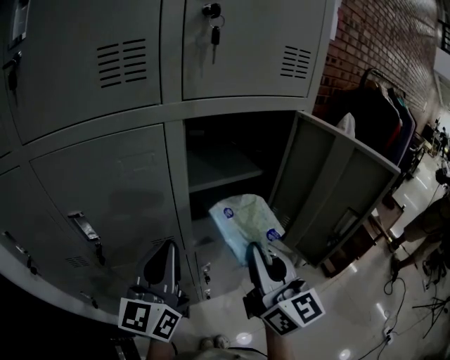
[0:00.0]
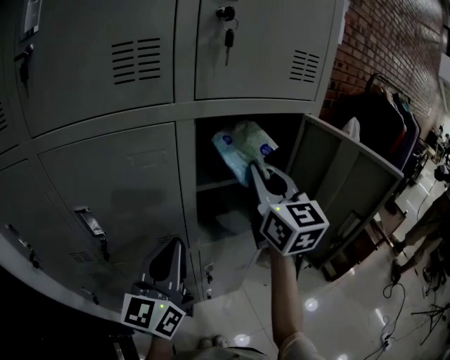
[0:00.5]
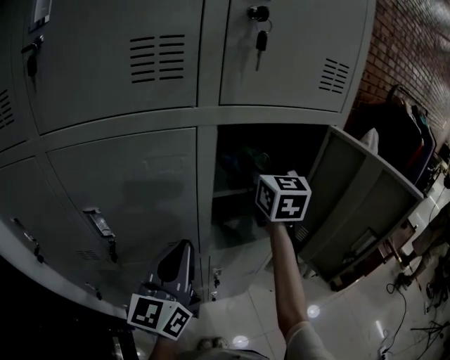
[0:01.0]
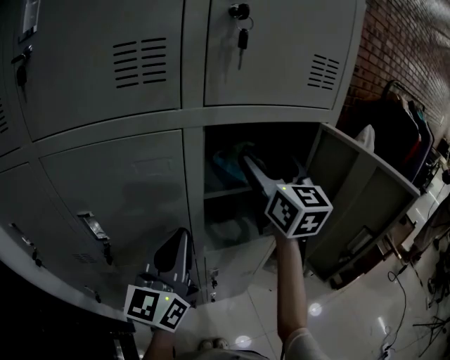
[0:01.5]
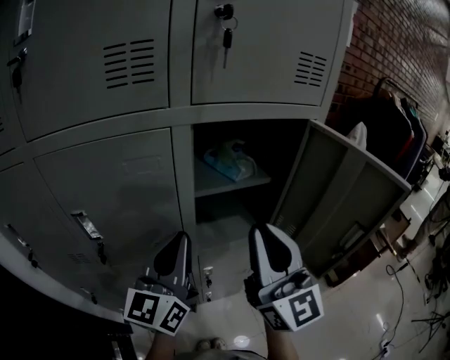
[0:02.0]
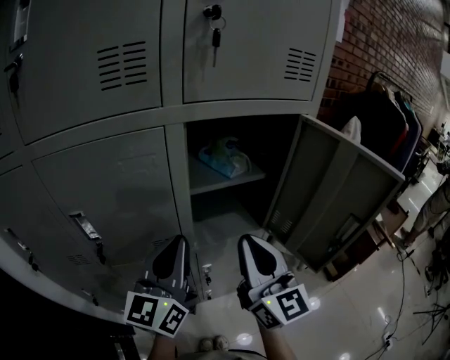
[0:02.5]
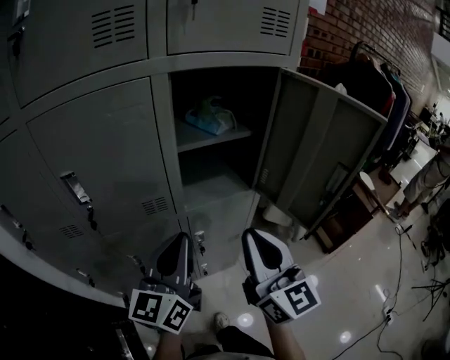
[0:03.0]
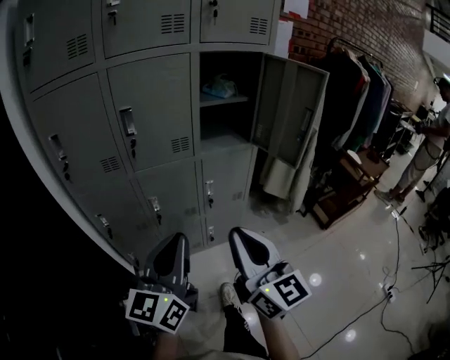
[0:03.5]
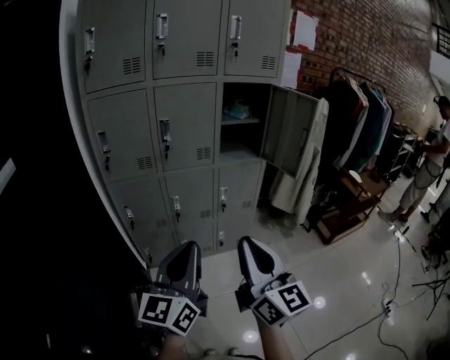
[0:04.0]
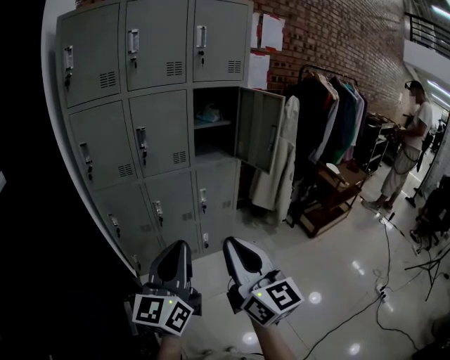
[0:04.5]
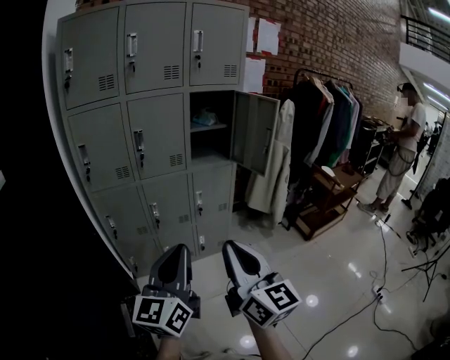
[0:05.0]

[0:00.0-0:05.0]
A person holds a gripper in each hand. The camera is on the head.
0:00.0 to 0:02.5: The right gripper goes forward and returns, about 25 cm each way, and opens and closes again.
0:02.5 to 0:05.0: The pair of grippers is taken backward, approximately 60 cm.

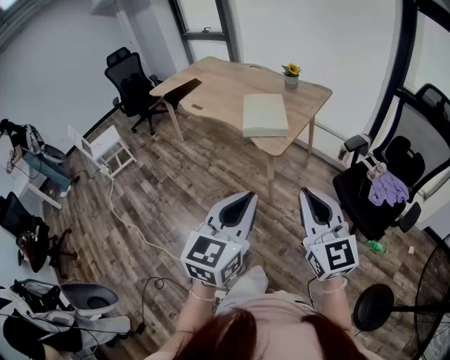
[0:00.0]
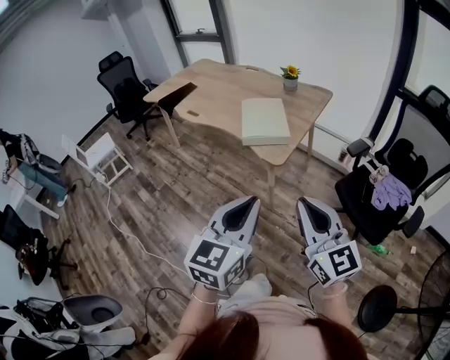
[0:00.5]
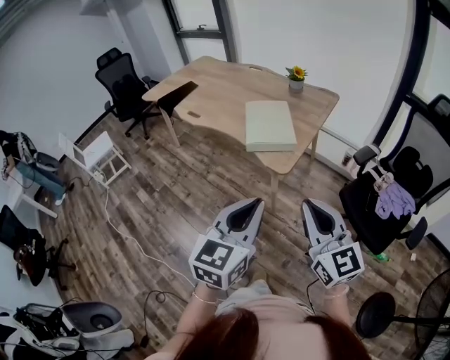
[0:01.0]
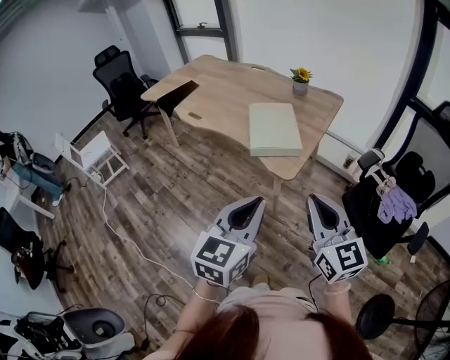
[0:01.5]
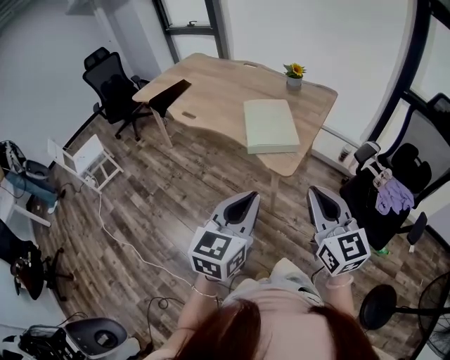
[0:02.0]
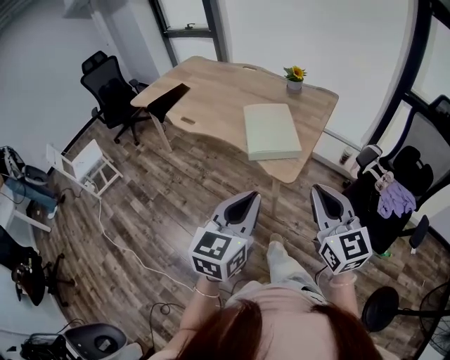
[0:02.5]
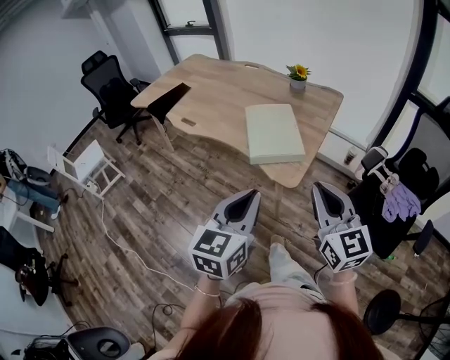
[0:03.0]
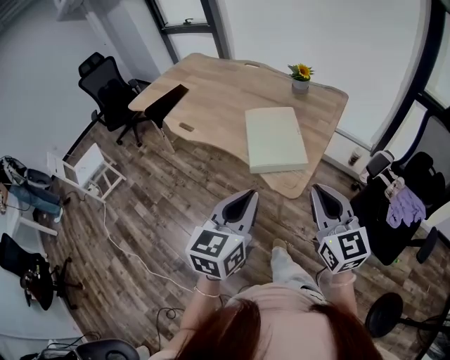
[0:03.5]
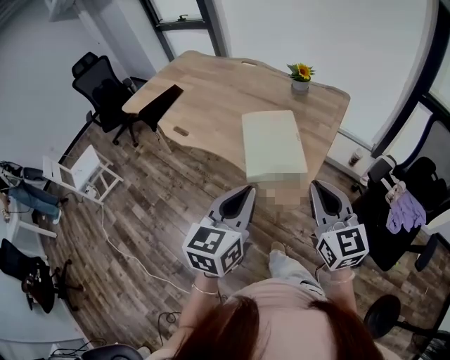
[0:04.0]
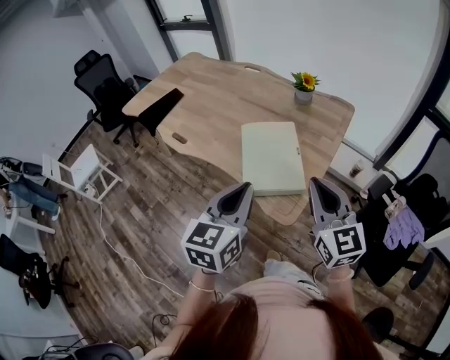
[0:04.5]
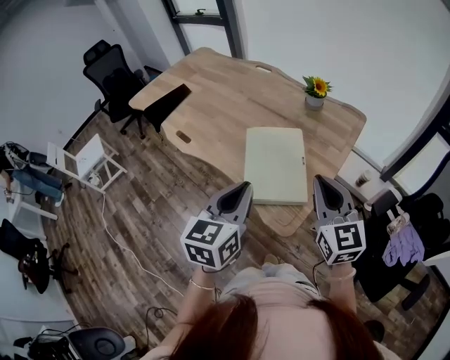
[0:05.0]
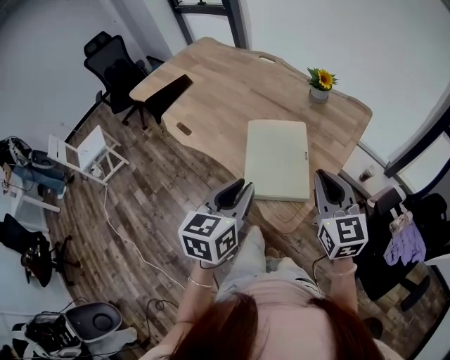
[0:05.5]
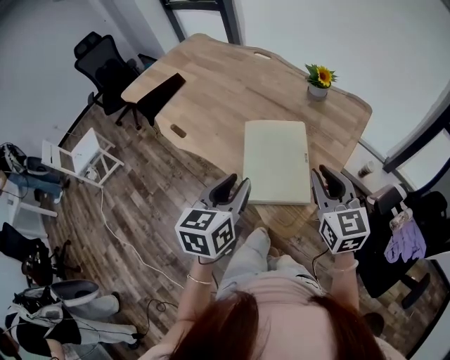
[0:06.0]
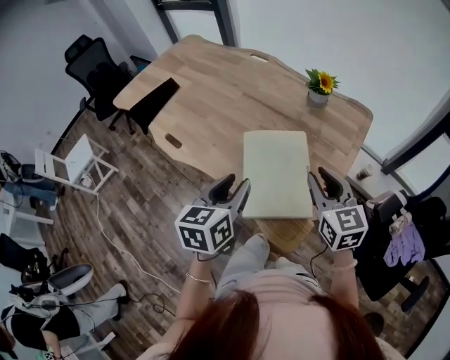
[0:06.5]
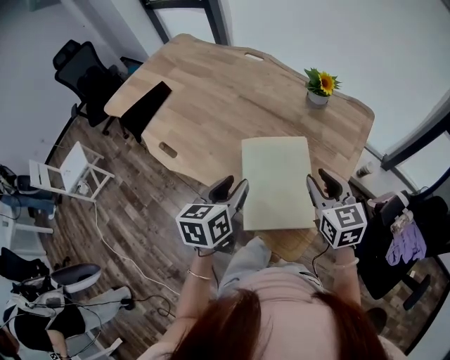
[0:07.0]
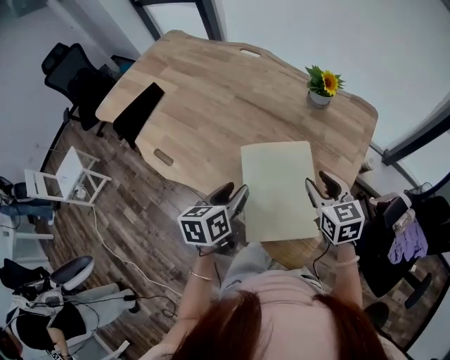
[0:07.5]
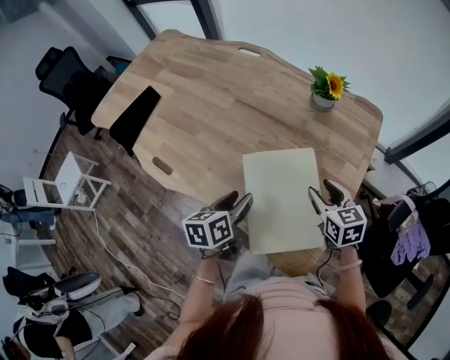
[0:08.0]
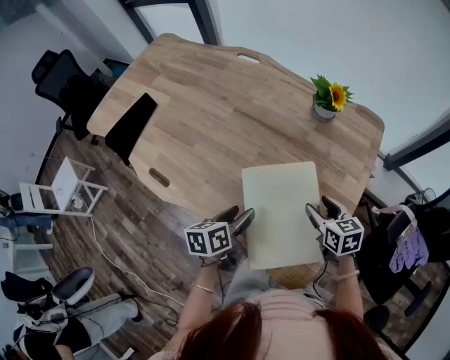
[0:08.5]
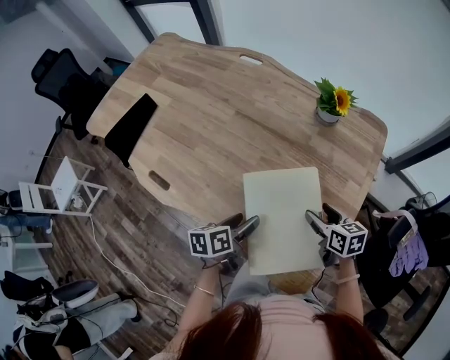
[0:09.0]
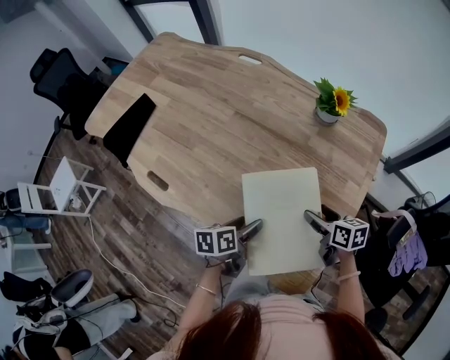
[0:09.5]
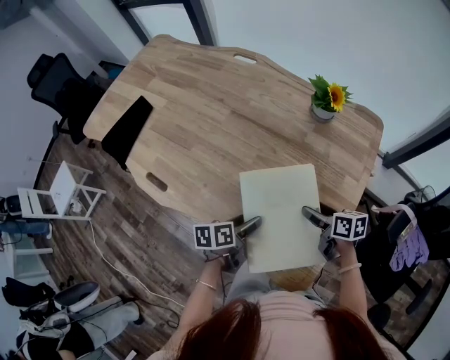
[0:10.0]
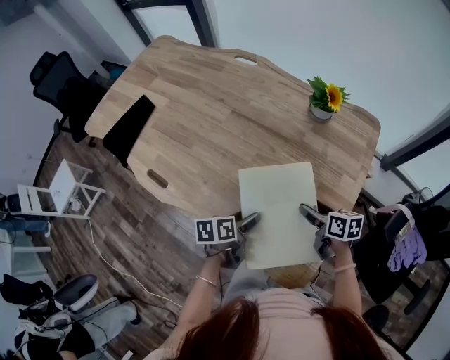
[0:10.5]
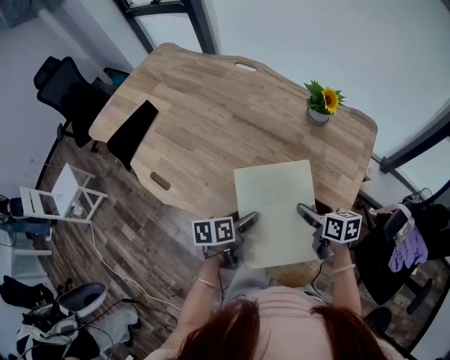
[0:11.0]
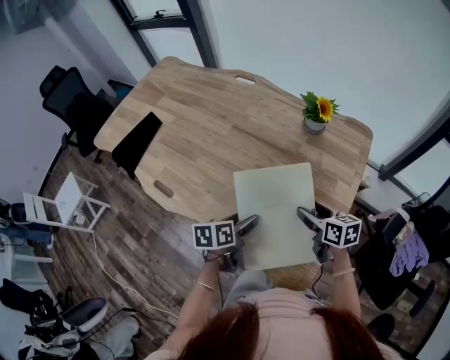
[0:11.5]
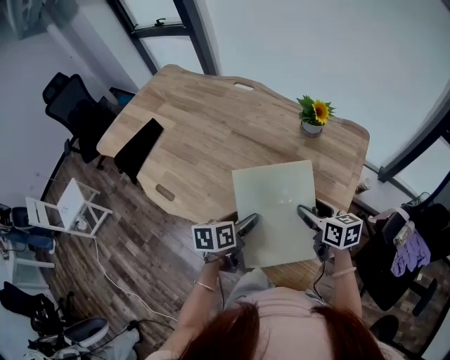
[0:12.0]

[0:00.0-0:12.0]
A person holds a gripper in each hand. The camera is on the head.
0:00.0 to 0:02.0: The left gripper travels forward and to the left by some 20 cm. Meanwhile the right gripper shifts some 15 cm forward.
0:02.0 to 0:04.0: Both grippers move forward, about 20 cm.
0:04.0 to 0:06.0: Both grippers move forward, roughly 20 cm. The left gripper opens its fingers.
0:06.0 to 0:08.0: Both grippers move forward and downward, approximately 25 cm. The right gripper swivels roughly 30 degrees, and opens. Meanwhile the left gripper changes its angle by about 30 degrees.
0:08.0 to 0:10.0: The grippers both shift downward by approximately 10 cm. The right gripper swivels some 40 degrees, while the left gripper changes its angle by about 20 degrees, and opens its fingers.
0:10.0 to 0:12.0: Both grippers travel together upward, roughly 10 cm. The right gripper changes its angle by roughly 20 degrees.

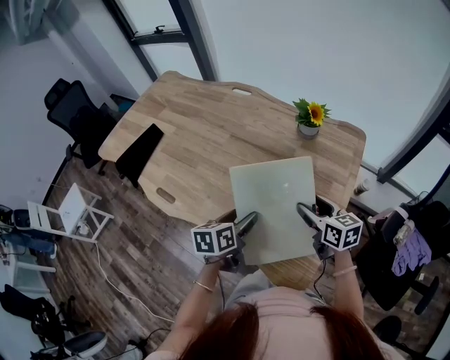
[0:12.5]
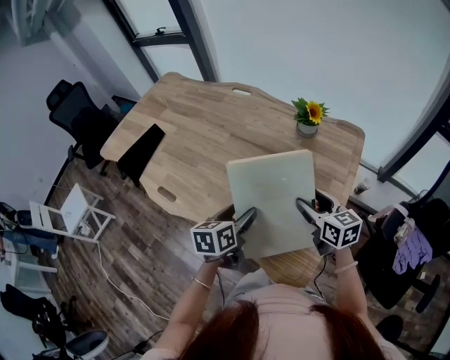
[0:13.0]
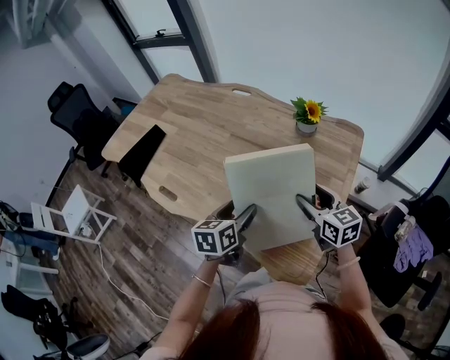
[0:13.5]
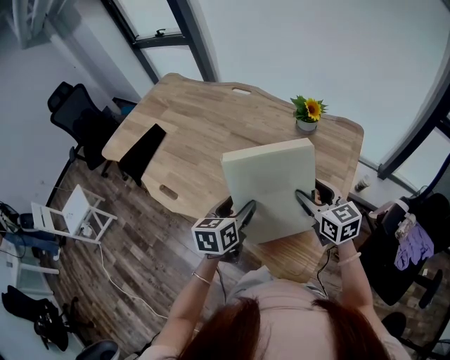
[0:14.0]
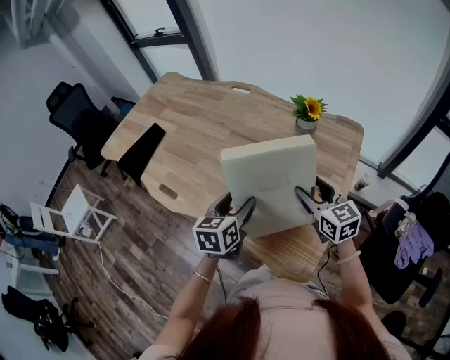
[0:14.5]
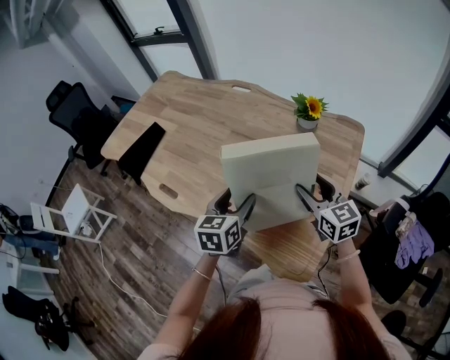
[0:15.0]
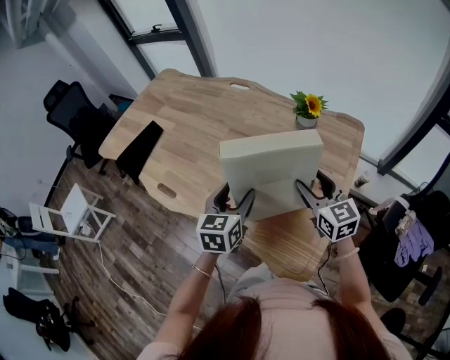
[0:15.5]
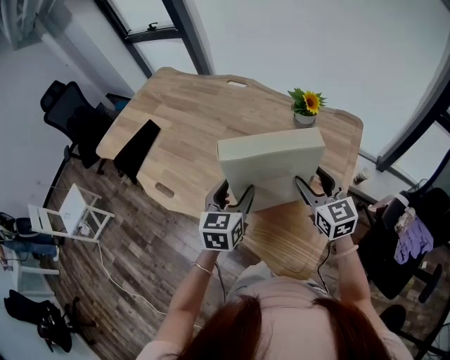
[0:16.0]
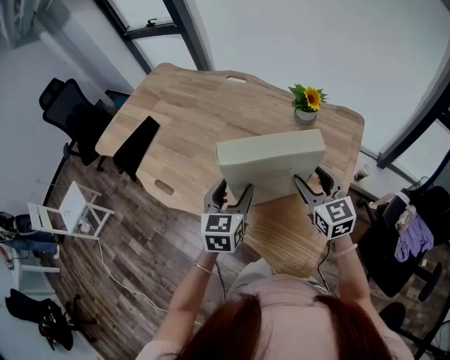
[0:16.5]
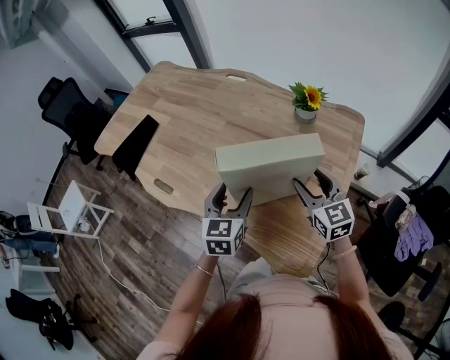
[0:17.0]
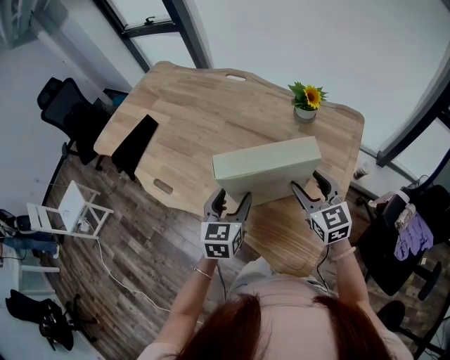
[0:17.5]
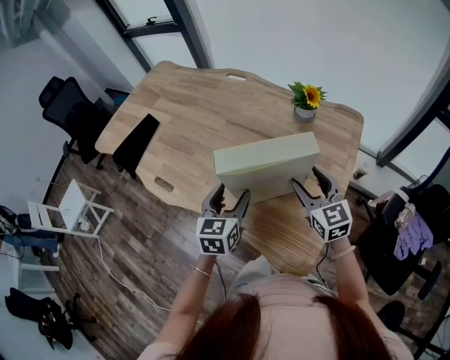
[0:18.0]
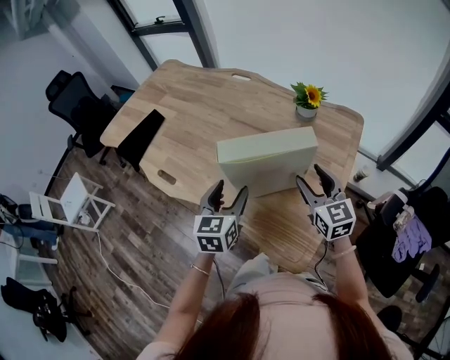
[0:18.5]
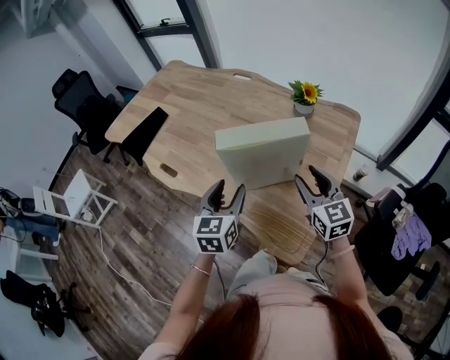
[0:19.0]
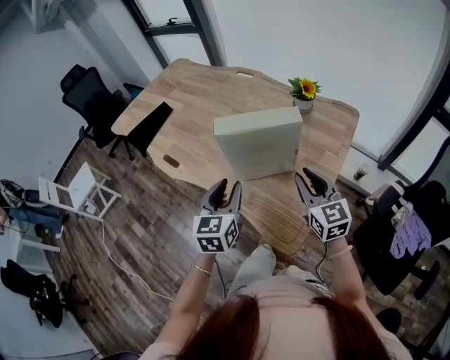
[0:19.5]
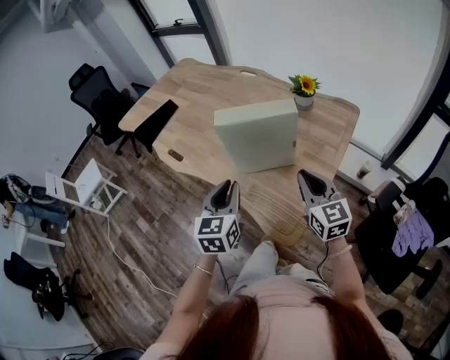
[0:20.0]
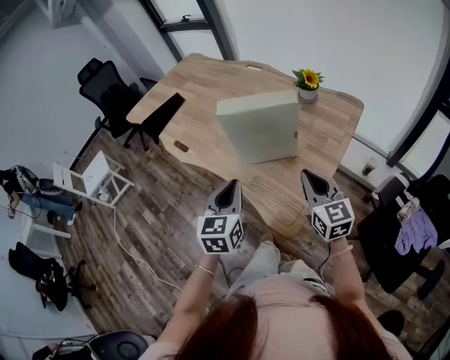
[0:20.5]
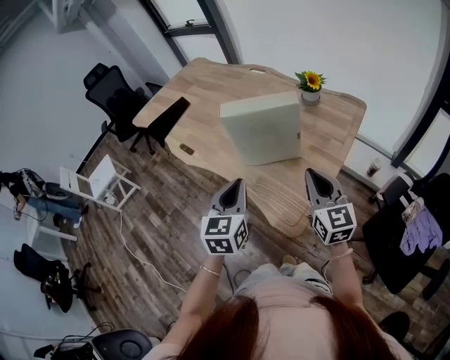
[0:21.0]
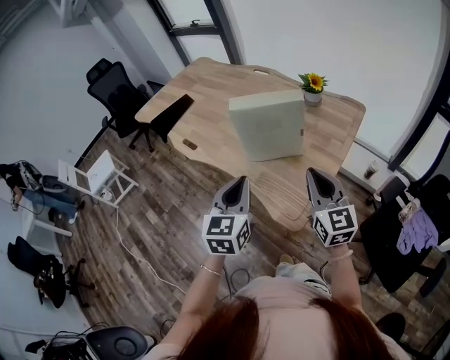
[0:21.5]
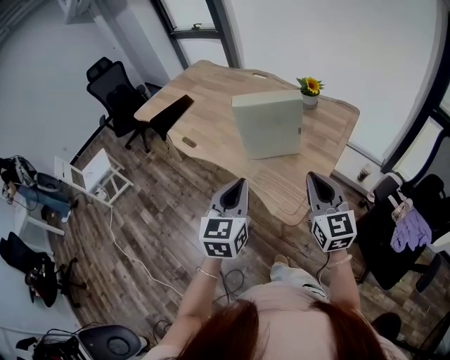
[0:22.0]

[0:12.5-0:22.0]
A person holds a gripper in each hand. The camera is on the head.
0:12.5 to 0:14.5: Both grippers travel together upward, approximately 5 cm.
0:14.5 to 0:18.0: The grippers make only small movements.
0:18.0 to 0:20.0: The two grippers go roughly 15 cm backward. The left gripper closes up, while the right gripper closes up.
0:20.0 to 0:22.0: Both grippers move backward and upward, roughly 15 cm.
